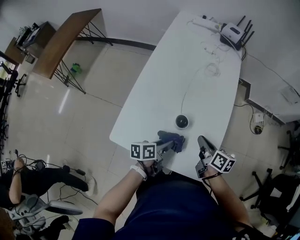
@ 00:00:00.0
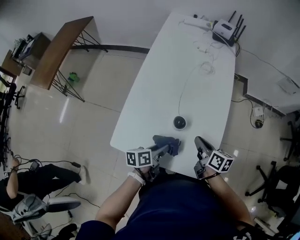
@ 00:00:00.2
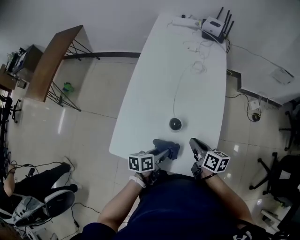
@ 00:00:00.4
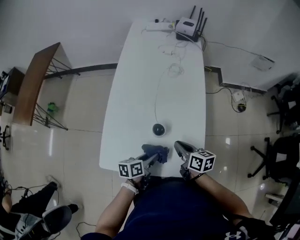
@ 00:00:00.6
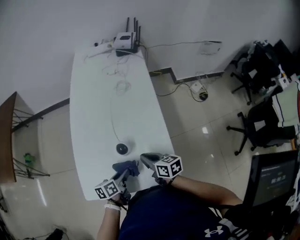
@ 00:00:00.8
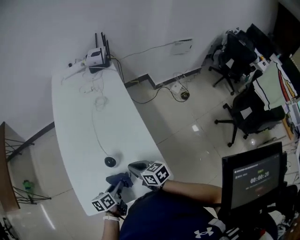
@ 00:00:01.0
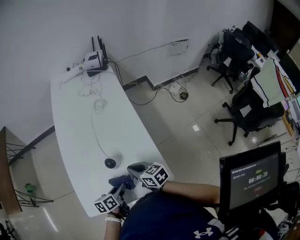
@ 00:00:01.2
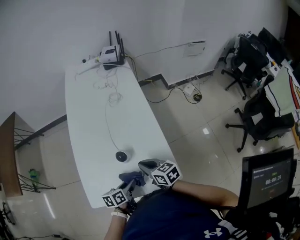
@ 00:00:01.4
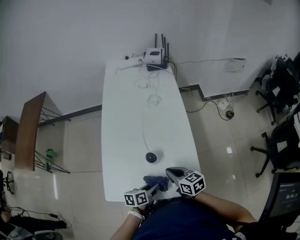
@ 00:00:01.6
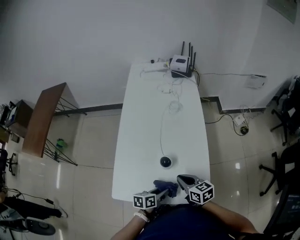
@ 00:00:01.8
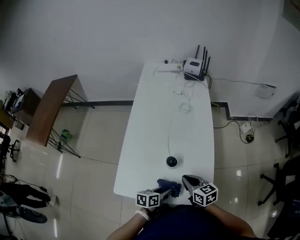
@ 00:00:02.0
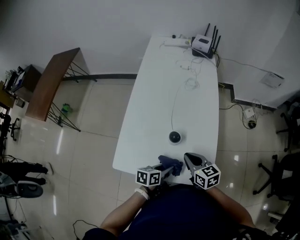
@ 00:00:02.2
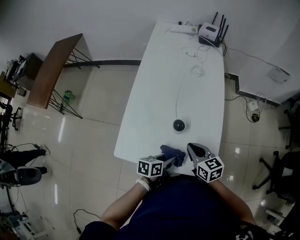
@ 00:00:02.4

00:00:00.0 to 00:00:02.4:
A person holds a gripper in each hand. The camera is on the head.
00:00:00.0 to 00:00:01.2: The right gripper moves approximately 5 cm; the left gripper rotates some 20 degrees.
00:00:01.2 to 00:00:02.4: There are only small adjustments of the grippers.

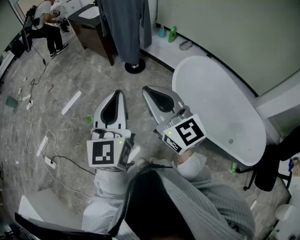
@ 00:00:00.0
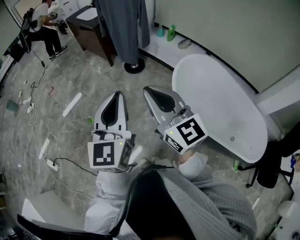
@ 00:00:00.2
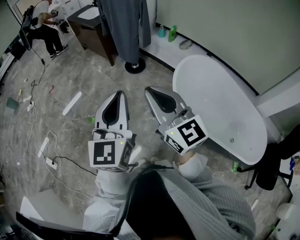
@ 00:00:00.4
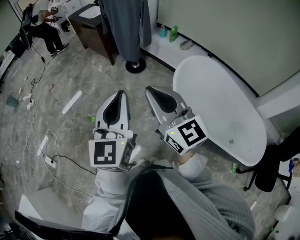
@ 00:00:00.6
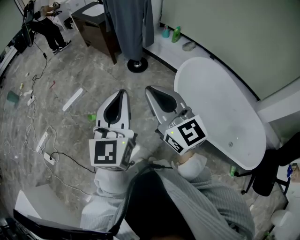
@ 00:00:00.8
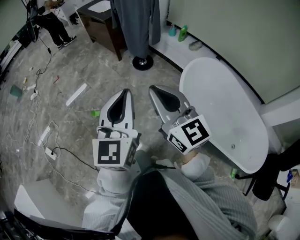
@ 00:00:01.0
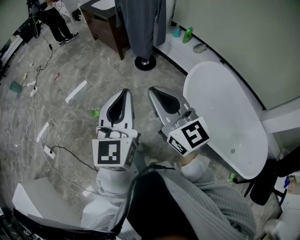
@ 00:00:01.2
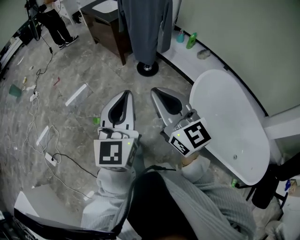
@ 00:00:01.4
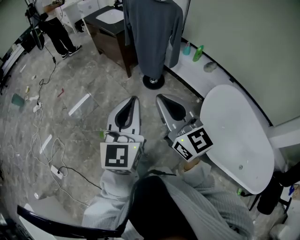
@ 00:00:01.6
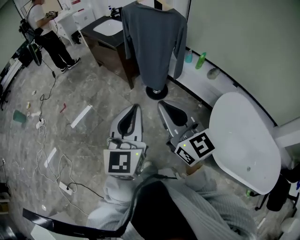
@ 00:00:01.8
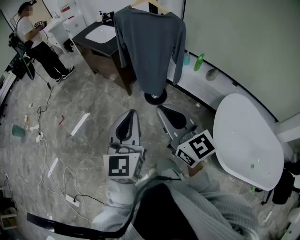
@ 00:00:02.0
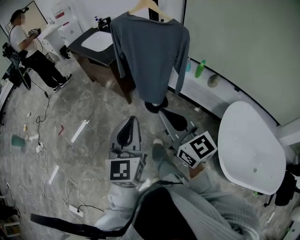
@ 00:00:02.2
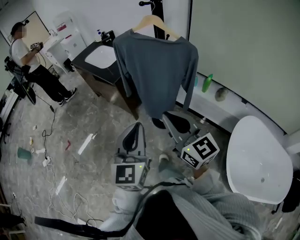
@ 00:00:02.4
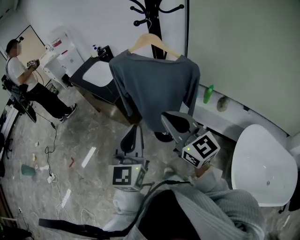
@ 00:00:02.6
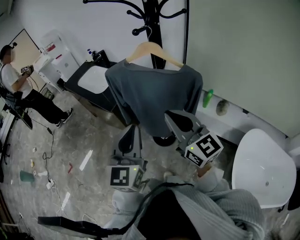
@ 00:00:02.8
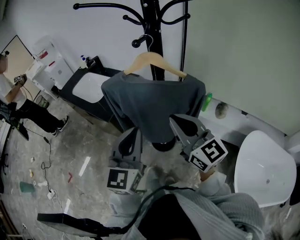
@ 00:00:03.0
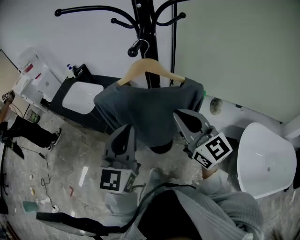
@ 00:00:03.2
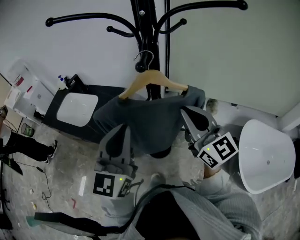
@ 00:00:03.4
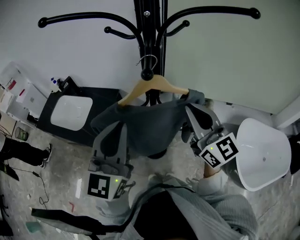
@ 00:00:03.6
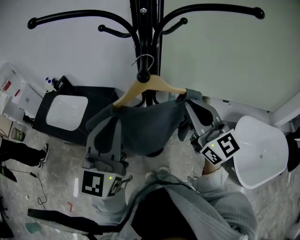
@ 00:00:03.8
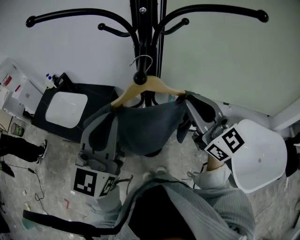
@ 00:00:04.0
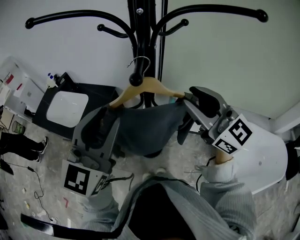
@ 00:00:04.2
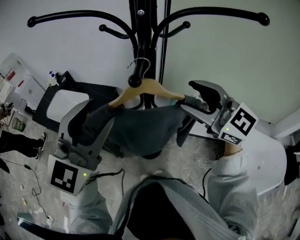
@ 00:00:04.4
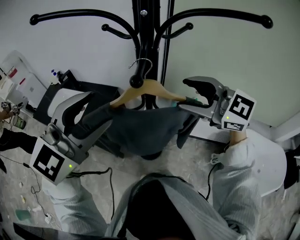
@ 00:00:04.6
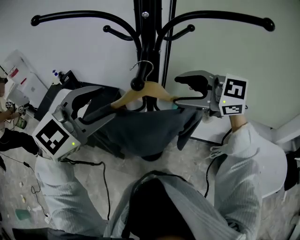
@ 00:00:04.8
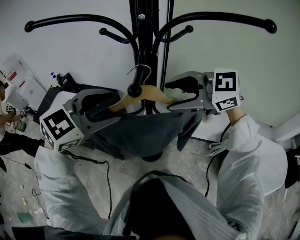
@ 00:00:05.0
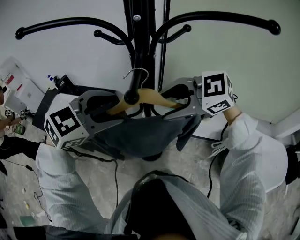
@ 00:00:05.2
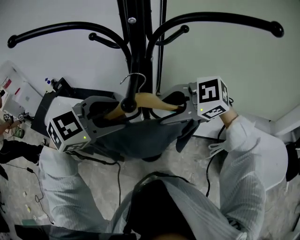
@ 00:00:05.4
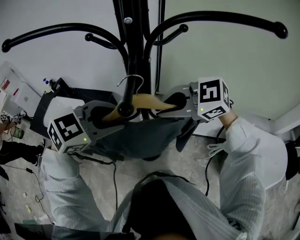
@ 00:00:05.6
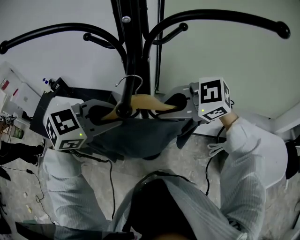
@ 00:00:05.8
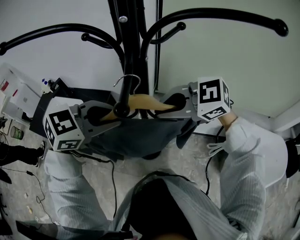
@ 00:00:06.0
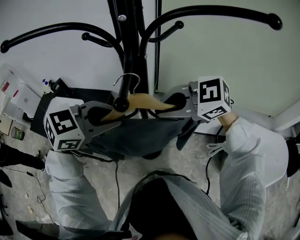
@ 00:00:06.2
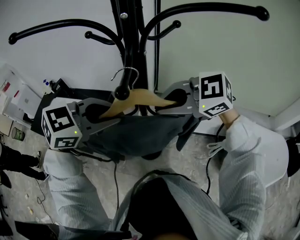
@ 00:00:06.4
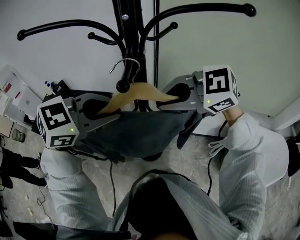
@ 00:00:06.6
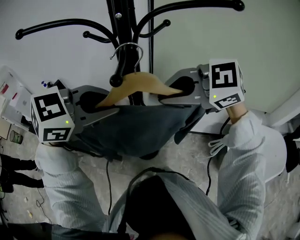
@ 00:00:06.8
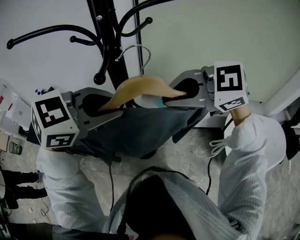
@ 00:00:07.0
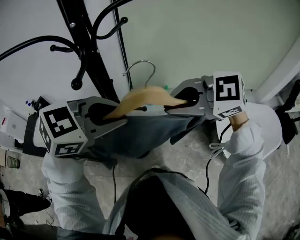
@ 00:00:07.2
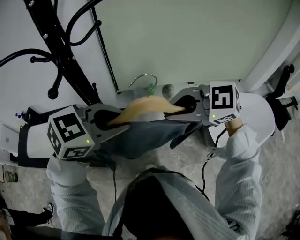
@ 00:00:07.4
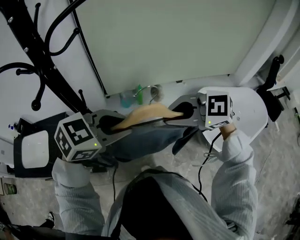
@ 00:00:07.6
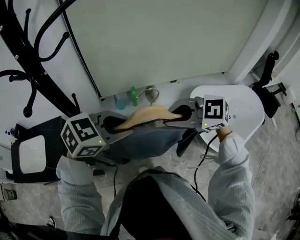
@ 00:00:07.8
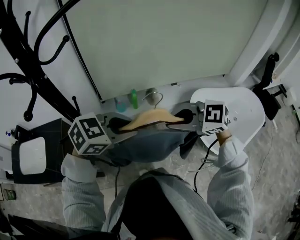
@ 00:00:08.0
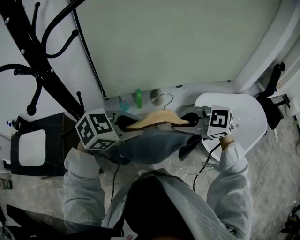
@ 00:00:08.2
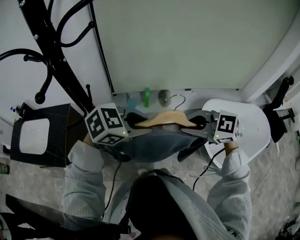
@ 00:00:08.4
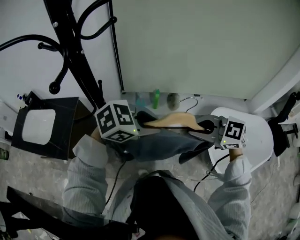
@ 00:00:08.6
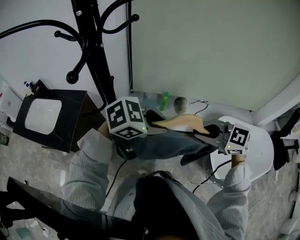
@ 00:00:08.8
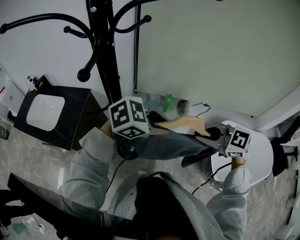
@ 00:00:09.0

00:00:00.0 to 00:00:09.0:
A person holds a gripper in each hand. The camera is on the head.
00:00:00.0 to 00:00:01.6: Both grippers travel together forward, approximately 25 cm.
00:00:01.6 to 00:00:03.0: Both grippers are carried forward, roughly 60 cm. The left gripper swivels about 20 degrees.
00:00:03.0 to 00:00:04.4: Both grippers move forward and upward, about 20 cm. The left gripper turns by roughly 30 degrees, and opens up. The right gripper changes its angle by some 20 degrees, and opens its fingers.
00:00:04.4 to 00:00:06.0: Both grippers travel together downward, approximately 10 cm. The right gripper turns by some 40 degrees, and closes its fingers. Meanwhile the left gripper points its fingers about 30 degrees further downward, and closes.
00:00:06.0 to 00:00:07.6: The left gripper moves some 10 cm upward and comes back, and rotates about 20 degrees; the right gripper goes upward and returns, roughly 10 cm each way, and rotates about 30 degrees.
00:00:07.6 to 00:00:09.0: The two grippers go approximately 5 cm downward.

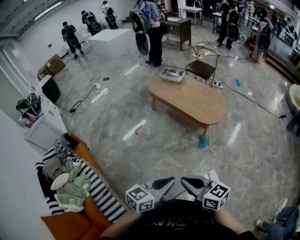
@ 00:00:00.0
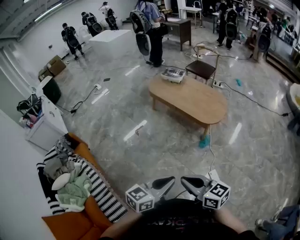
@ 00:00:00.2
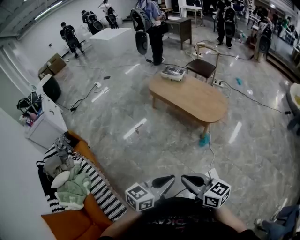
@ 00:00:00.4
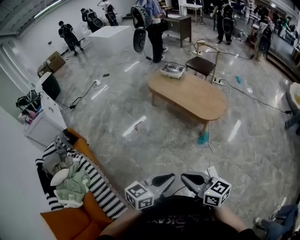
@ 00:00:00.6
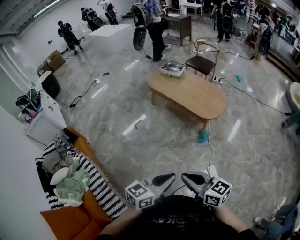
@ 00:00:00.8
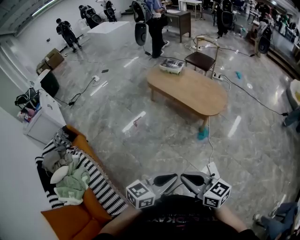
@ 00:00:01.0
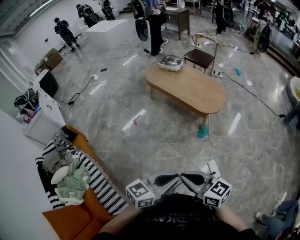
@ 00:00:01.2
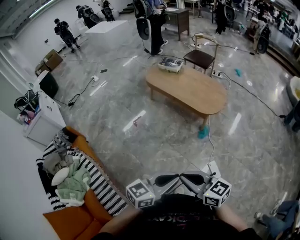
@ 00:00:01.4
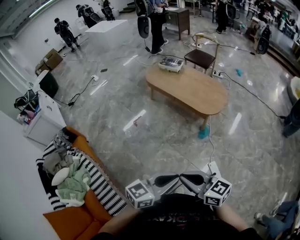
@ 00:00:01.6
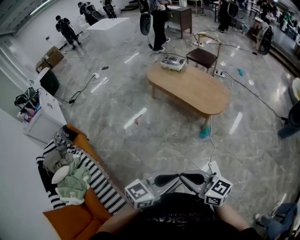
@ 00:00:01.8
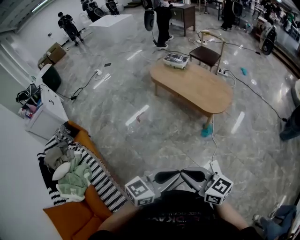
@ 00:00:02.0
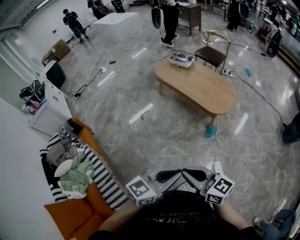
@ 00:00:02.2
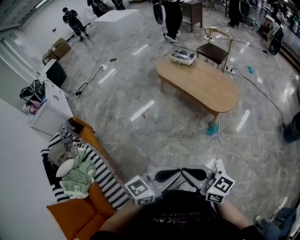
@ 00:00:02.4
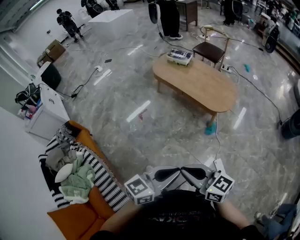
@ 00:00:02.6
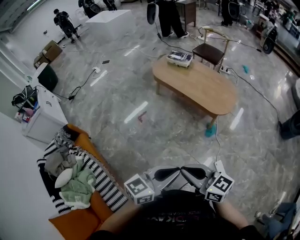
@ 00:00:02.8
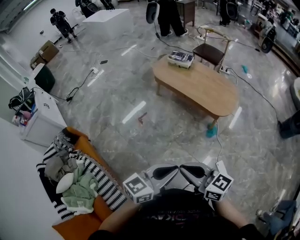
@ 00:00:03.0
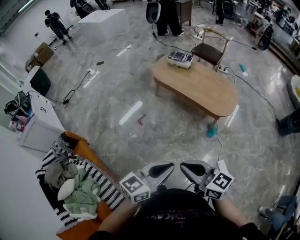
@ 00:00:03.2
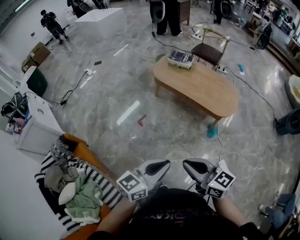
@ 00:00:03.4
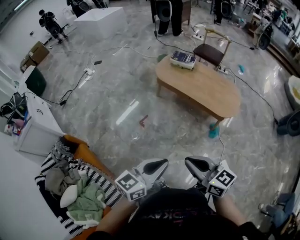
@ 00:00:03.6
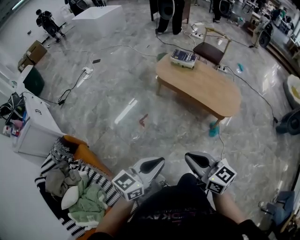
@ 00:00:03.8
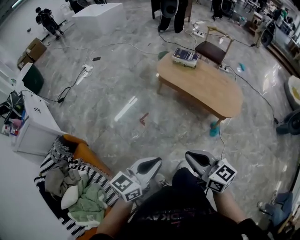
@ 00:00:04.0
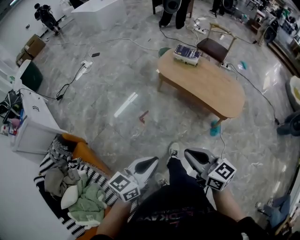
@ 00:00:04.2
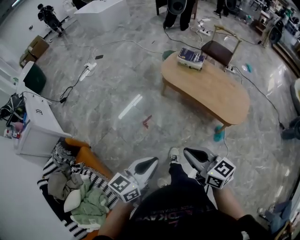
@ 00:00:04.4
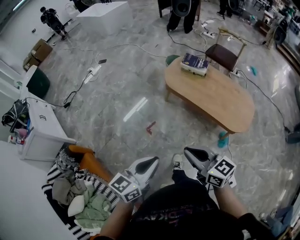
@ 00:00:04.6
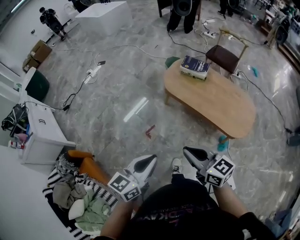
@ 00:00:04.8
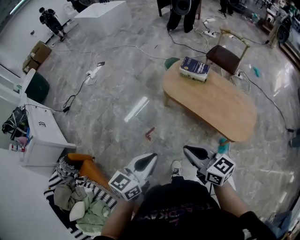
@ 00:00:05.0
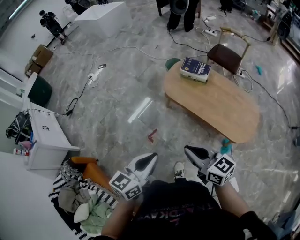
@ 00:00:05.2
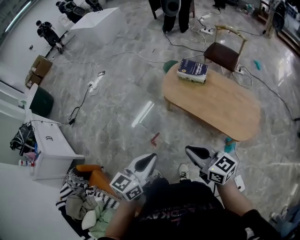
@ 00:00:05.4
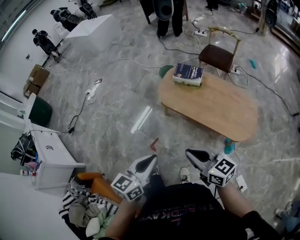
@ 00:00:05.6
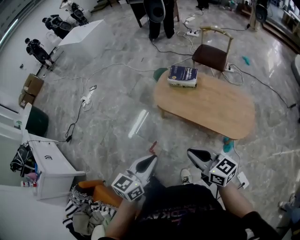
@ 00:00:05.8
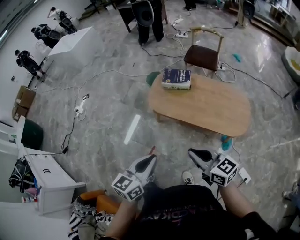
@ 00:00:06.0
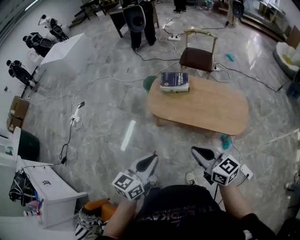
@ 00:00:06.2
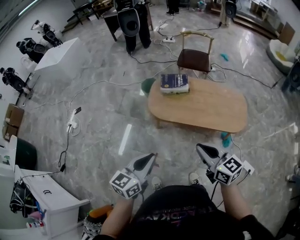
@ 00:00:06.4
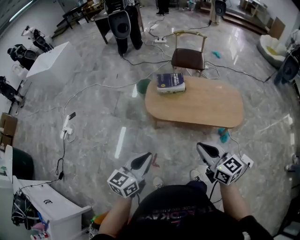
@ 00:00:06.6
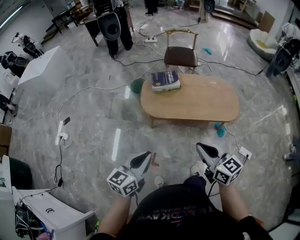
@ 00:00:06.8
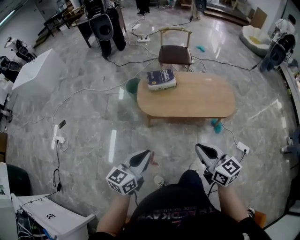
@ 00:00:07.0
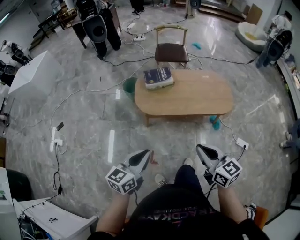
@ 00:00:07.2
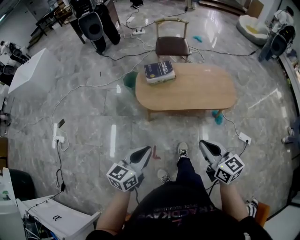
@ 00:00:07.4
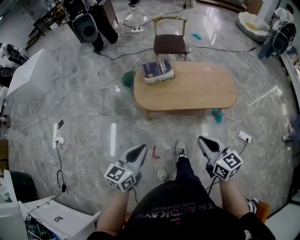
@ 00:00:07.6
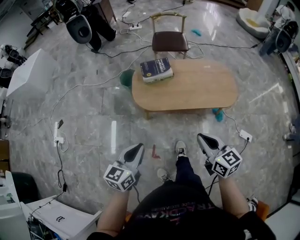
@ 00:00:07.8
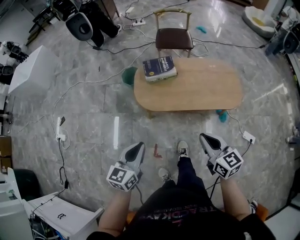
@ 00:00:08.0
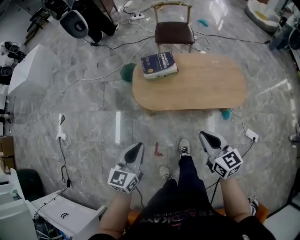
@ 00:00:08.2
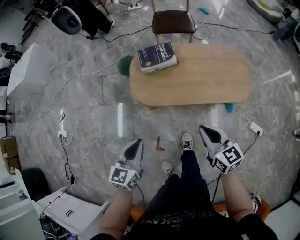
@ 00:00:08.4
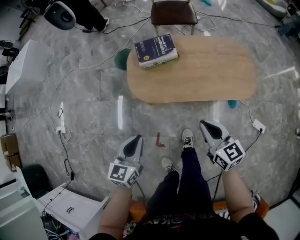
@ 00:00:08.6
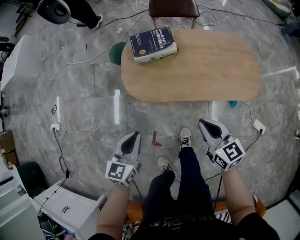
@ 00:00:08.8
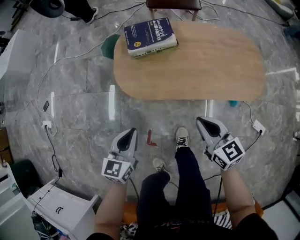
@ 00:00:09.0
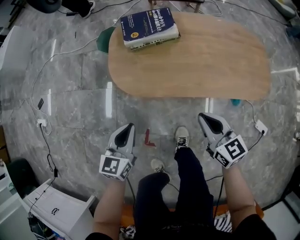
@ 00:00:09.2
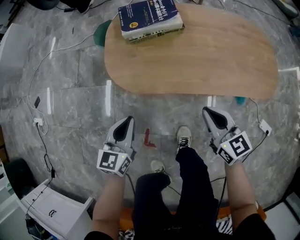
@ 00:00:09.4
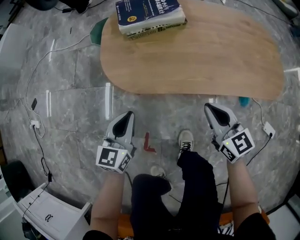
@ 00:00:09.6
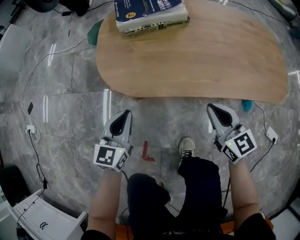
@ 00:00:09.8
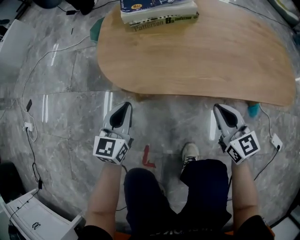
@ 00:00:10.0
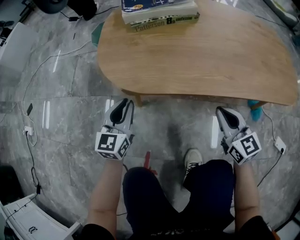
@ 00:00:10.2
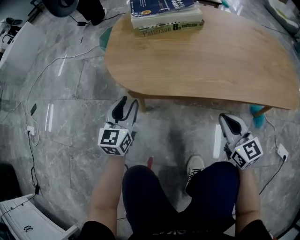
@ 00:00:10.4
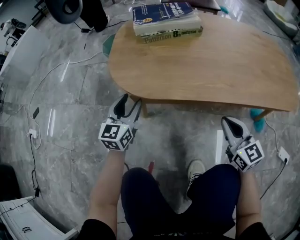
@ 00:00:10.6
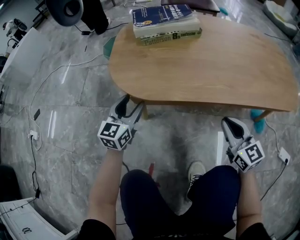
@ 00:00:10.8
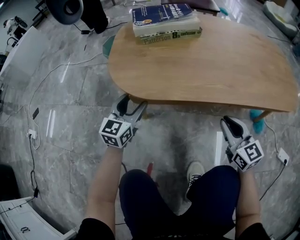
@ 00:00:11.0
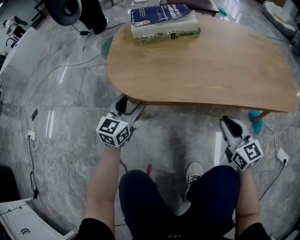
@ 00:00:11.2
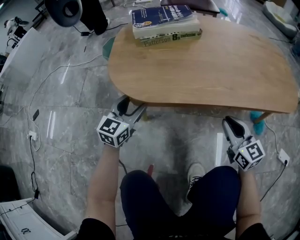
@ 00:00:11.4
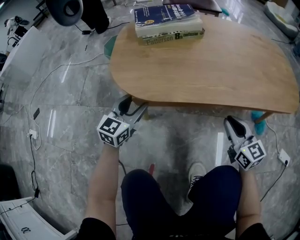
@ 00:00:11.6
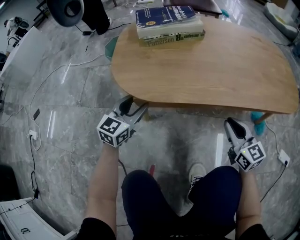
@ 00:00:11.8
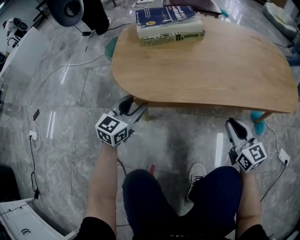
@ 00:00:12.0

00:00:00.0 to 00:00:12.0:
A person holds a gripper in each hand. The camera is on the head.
00:00:00.0 to 00:00:01.6: There are only small adjustments of the grippers.
00:00:01.6 to 00:00:03.0: Both grippers travel together to the left and forward, approximately 20 cm.
00:00:03.0 to 00:00:04.4: The left gripper moves to the left and forward, approximately 30 cm. The right gripper travels forward and to the left by some 30 cm.
00:00:04.4 to 00:00:06.0: Both grippers move forward, some 30 cm.
00:00:06.0 to 00:00:07.6: The right gripper shifts by roughly 15 cm, and changes its angle by roughly 40 degrees. The left gripper changes place by some 25 cm, and changes its angle by roughly 20 degrees.
00:00:07.6 to 00:00:09.0: Both grippers move downward and forward, approximately 35 cm.
00:00:09.0 to 00:00:10.4: Both grippers travel together downward, some 35 cm. The left gripper opens its fingers.
00:00:10.4 to 00:00:12.0: The left gripper changes its angle by roughly 20 degrees.
